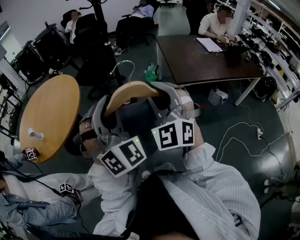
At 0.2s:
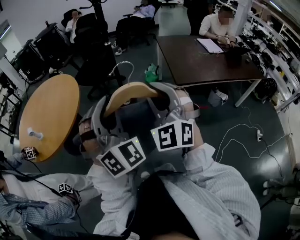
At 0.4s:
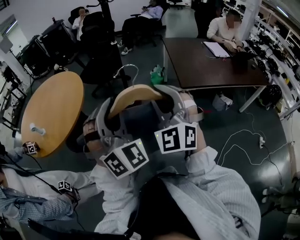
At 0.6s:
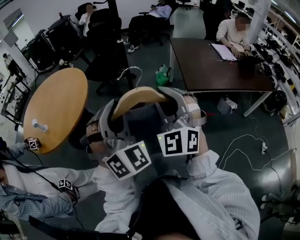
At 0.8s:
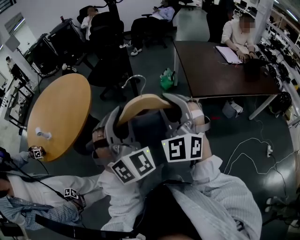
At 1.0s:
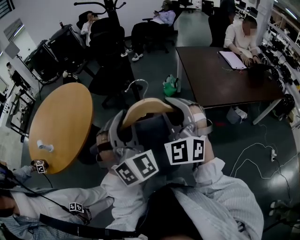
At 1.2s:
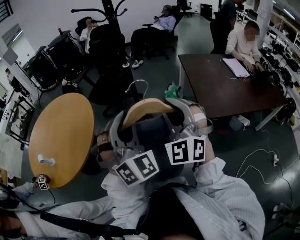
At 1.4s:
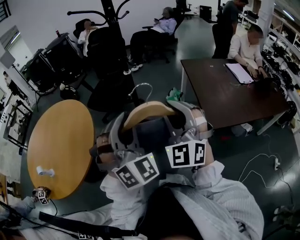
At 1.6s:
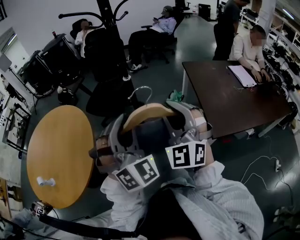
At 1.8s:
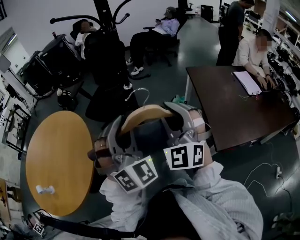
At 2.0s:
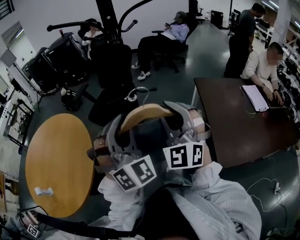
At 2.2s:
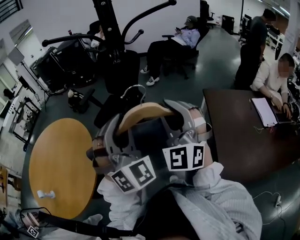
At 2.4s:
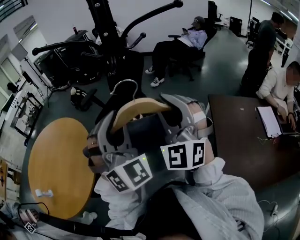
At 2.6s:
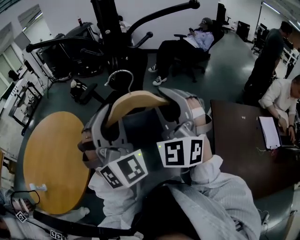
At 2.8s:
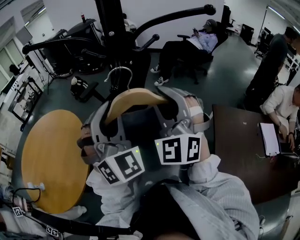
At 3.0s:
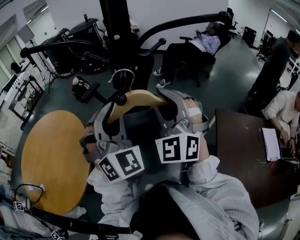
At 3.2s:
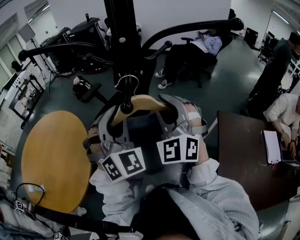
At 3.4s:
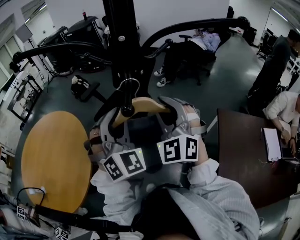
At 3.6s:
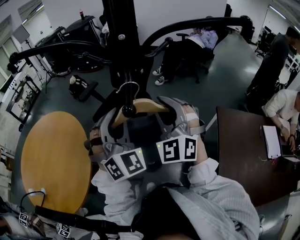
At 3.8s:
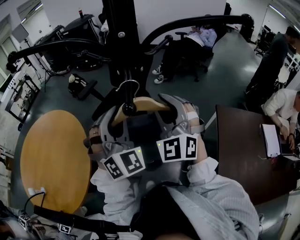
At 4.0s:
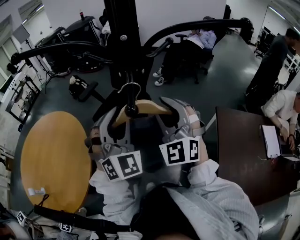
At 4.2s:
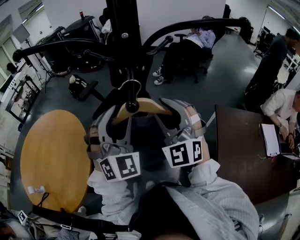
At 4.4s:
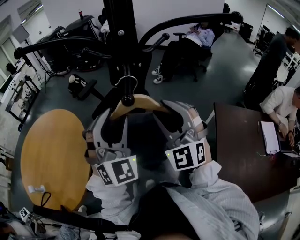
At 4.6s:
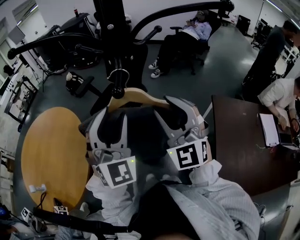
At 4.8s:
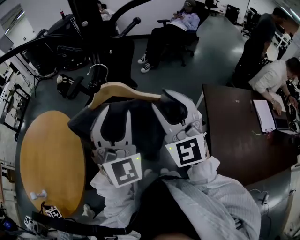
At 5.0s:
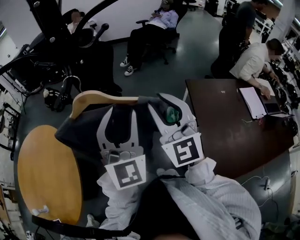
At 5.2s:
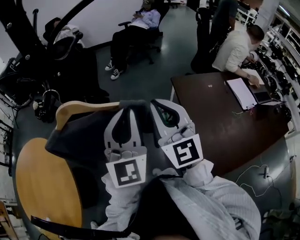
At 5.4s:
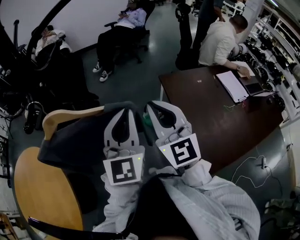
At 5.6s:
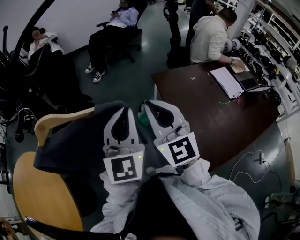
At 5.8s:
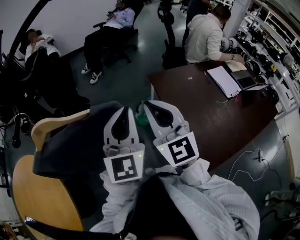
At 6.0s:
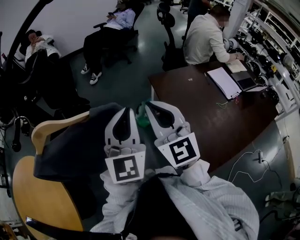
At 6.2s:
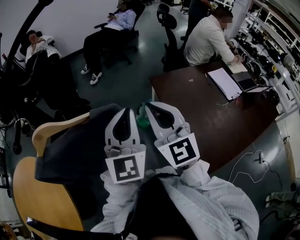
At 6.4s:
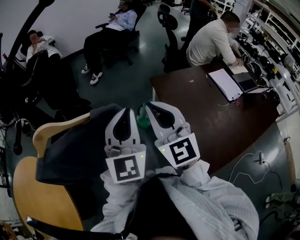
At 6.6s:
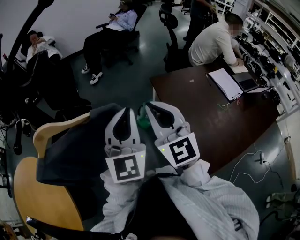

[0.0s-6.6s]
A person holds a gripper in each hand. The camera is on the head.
0.0s to 1.6s: The pair of grippers is taken forward, approximately 40 cm.
1.6s to 3.2s: The two grippers travel together, forward, roughly 50 cm.
3.2s to 5.0s: The left gripper heads to the right and backward, covering roughly 15 cm, changes its angle by roughly 40 degrees, and opens its fingers, while the right gripper shifts roughly 15 cm backward and to the right, and turns by about 30 degrees.
5.0s to 6.6s: Both grippers move to the right, roughly 15 cm. The left gripper changes its angle by roughly 20 degrees, and closes its fingers, while the right gripper closes.

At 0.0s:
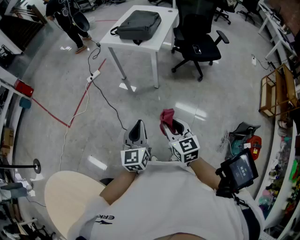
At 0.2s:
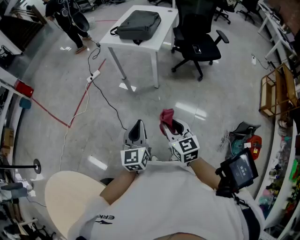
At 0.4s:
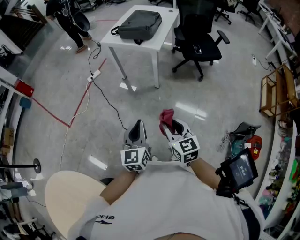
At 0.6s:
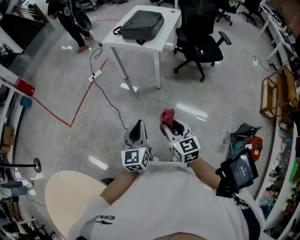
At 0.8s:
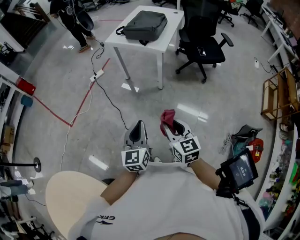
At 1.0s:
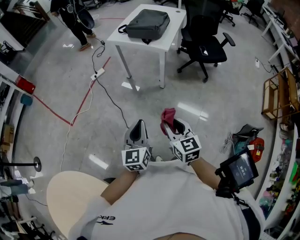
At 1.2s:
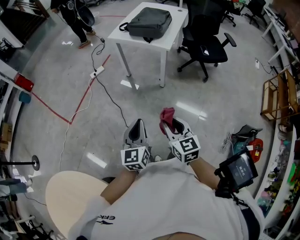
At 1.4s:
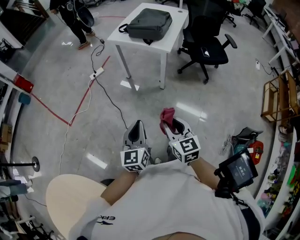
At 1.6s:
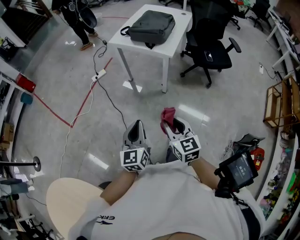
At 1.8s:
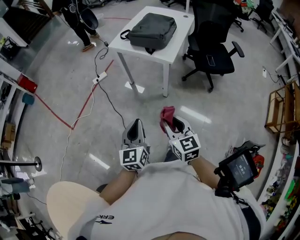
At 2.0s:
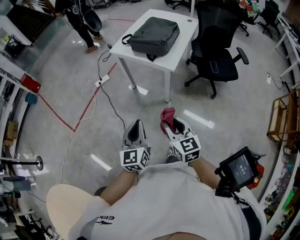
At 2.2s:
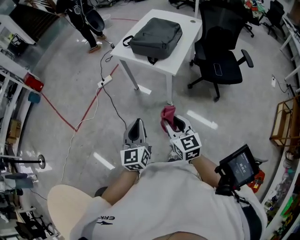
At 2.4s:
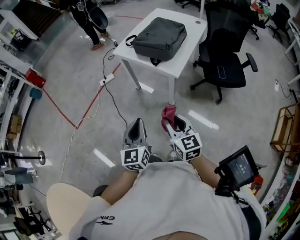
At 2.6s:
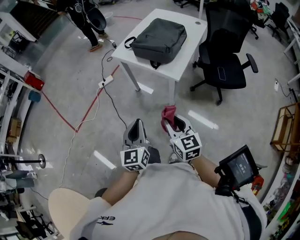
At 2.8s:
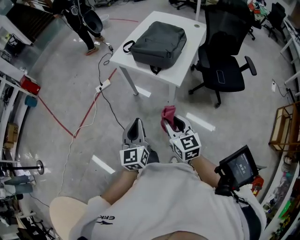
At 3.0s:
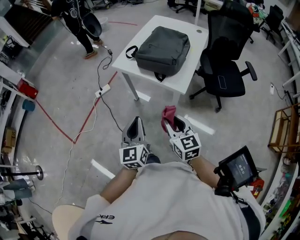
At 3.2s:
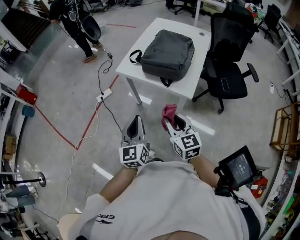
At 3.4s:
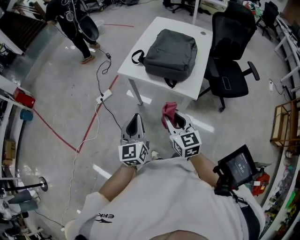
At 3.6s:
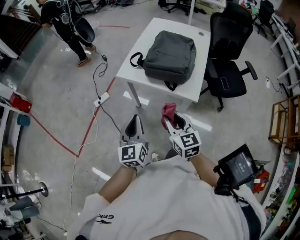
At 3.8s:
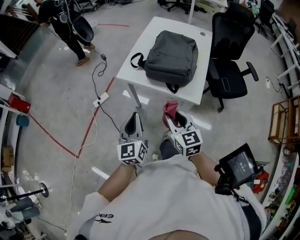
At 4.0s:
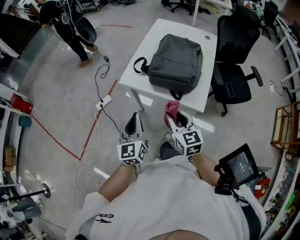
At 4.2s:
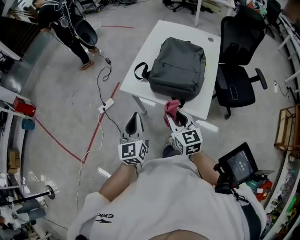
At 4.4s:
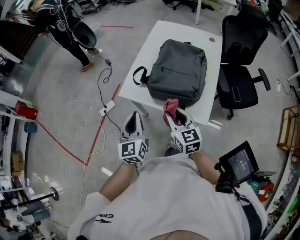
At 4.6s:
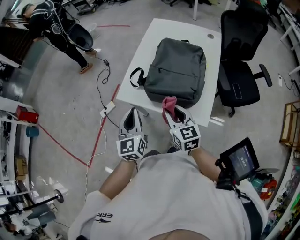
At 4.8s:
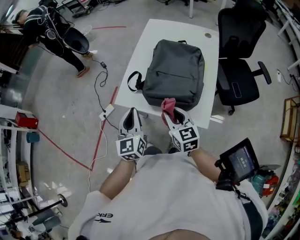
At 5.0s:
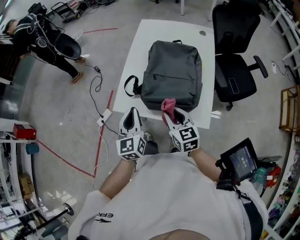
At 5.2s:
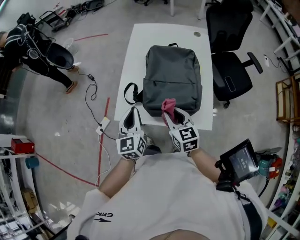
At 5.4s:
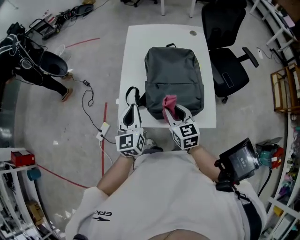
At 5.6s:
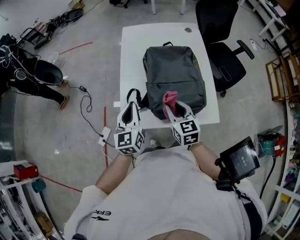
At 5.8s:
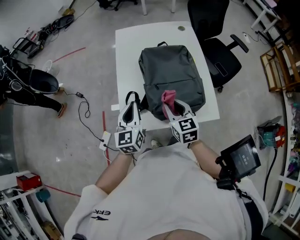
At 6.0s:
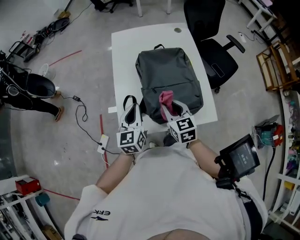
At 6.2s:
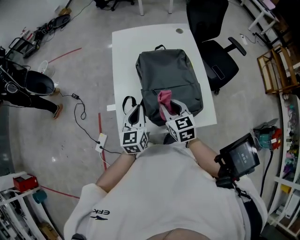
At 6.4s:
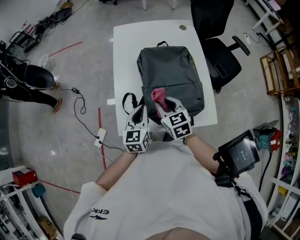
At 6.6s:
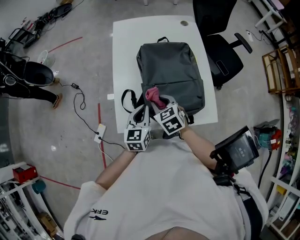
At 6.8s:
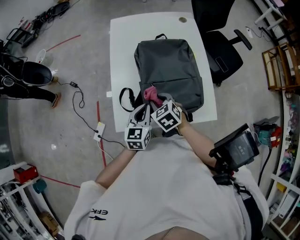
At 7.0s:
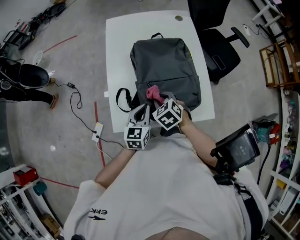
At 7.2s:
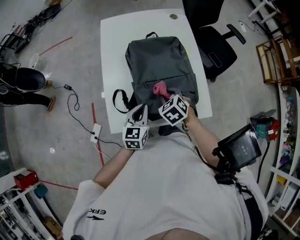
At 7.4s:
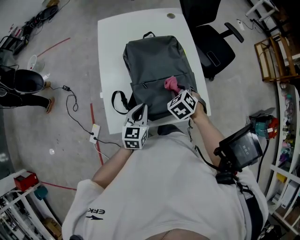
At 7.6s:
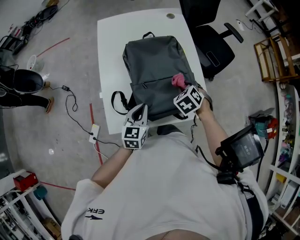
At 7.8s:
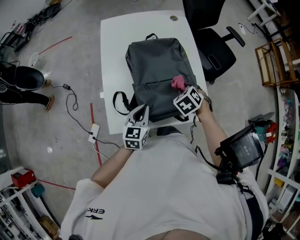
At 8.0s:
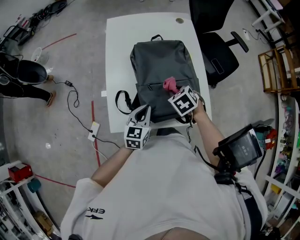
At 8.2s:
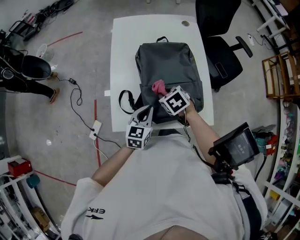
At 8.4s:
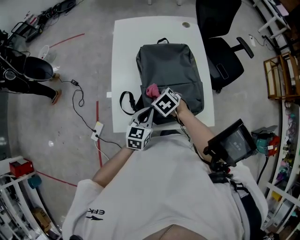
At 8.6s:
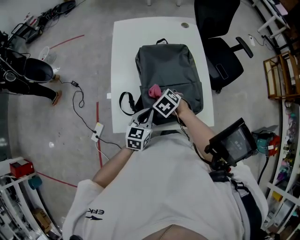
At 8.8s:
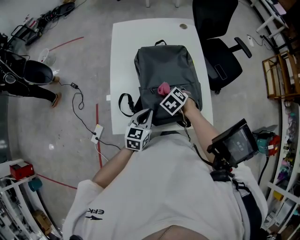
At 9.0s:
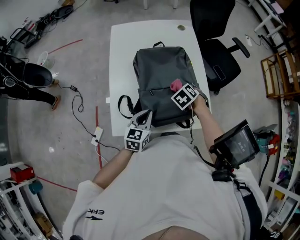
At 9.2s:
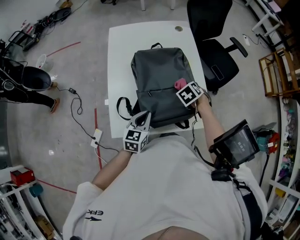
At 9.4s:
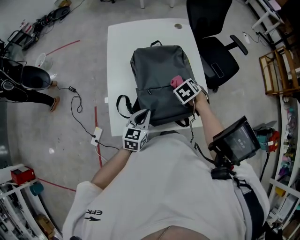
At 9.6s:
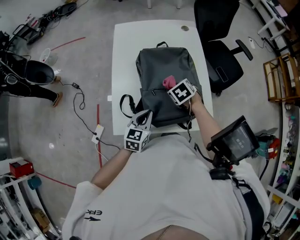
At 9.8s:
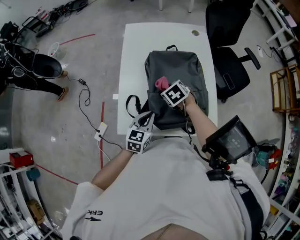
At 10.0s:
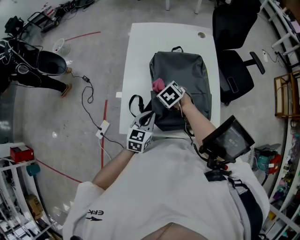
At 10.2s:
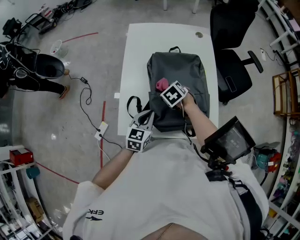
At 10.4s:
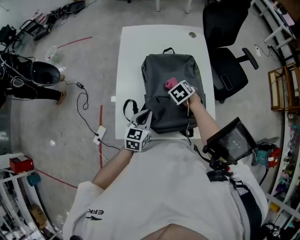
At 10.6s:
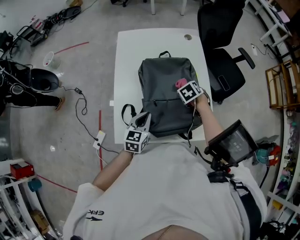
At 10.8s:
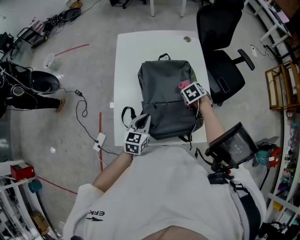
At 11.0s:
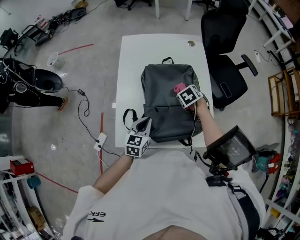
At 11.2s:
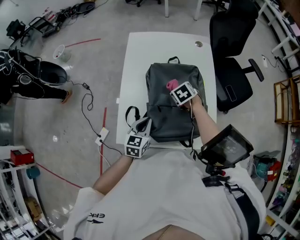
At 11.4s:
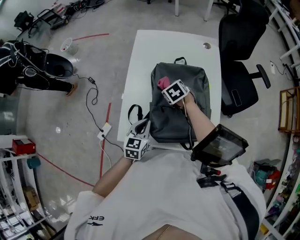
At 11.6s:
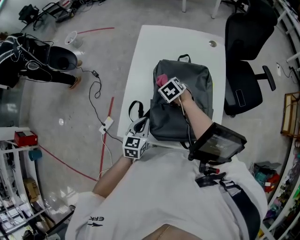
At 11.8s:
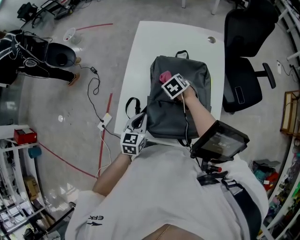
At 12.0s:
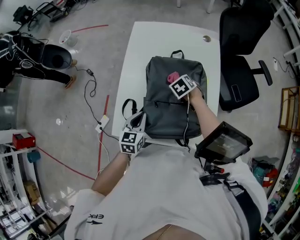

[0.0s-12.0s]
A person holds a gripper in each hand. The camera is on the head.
0.0s to 1.6s: The left gripper heads forward and to the left, covering roughly 10 cm; the right gripper is displaced forward by roughly 10 cm.
1.6s to 3.0s: Both grippers move forward, some 30 cm.
3.0s to 4.4s: Both grippers move forward, approximately 30 cm.
4.4s to 6.0s: The right gripper ends up roughly 20 cm from where it was, and changes its angle by about 30 degrees. The left gripper shifts by some 25 cm, and swivels approximately 30 degrees.
6.0s to 7.6s: The left gripper changes place by about 15 cm; the right gripper changes place by about 20 cm, and tilts its fingers approximately 30 degrees downward.

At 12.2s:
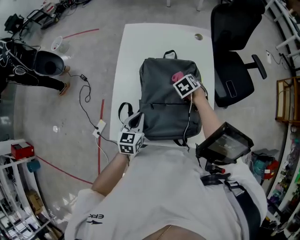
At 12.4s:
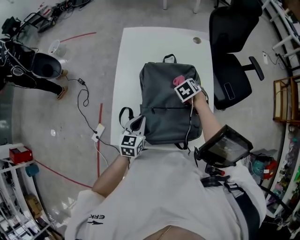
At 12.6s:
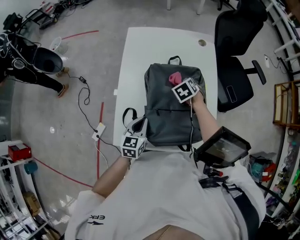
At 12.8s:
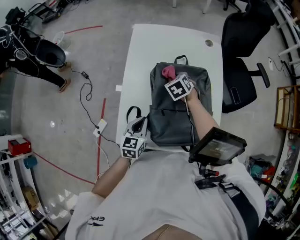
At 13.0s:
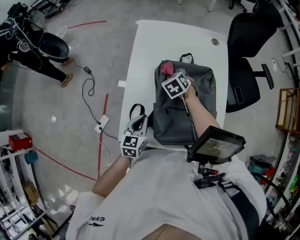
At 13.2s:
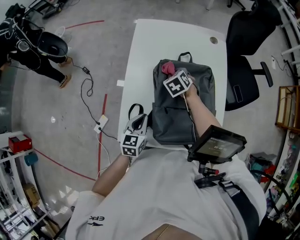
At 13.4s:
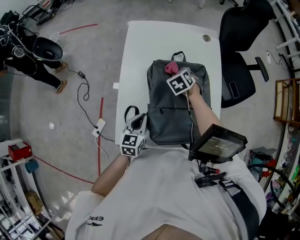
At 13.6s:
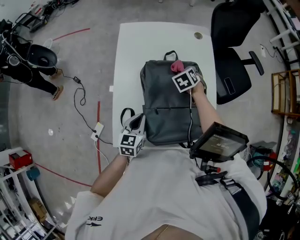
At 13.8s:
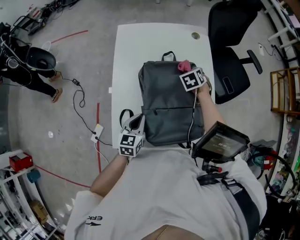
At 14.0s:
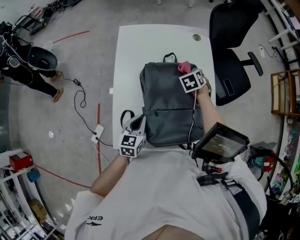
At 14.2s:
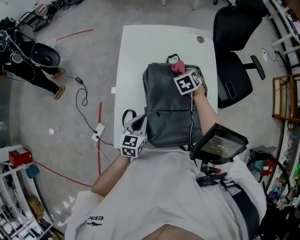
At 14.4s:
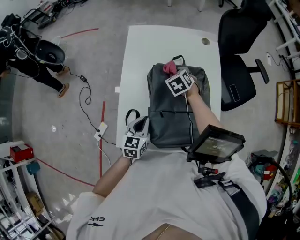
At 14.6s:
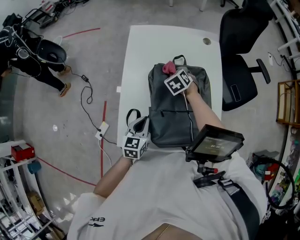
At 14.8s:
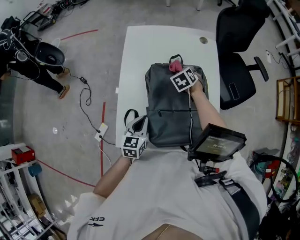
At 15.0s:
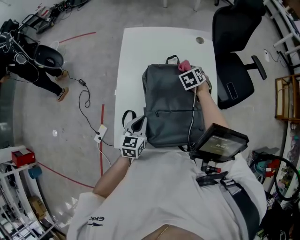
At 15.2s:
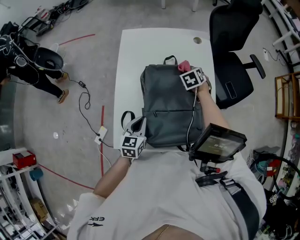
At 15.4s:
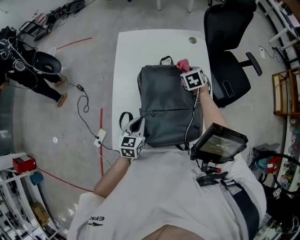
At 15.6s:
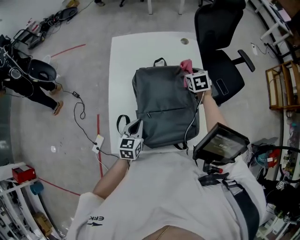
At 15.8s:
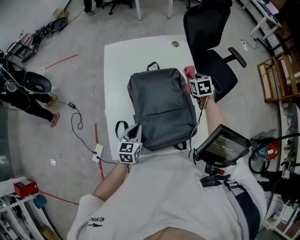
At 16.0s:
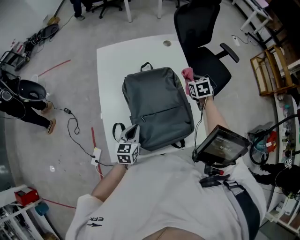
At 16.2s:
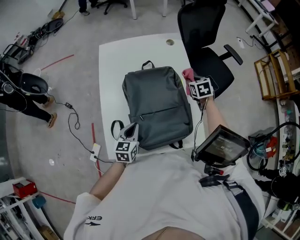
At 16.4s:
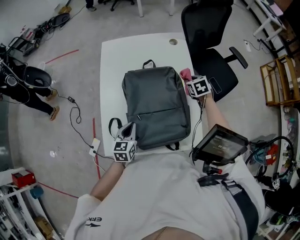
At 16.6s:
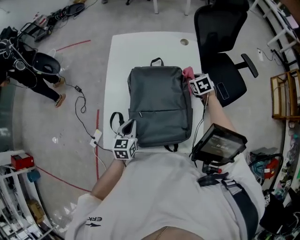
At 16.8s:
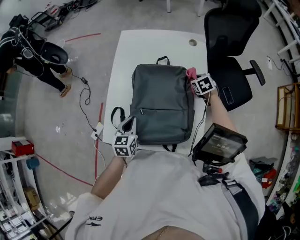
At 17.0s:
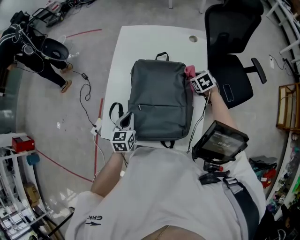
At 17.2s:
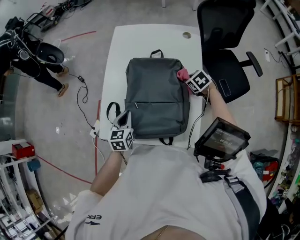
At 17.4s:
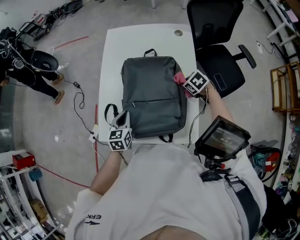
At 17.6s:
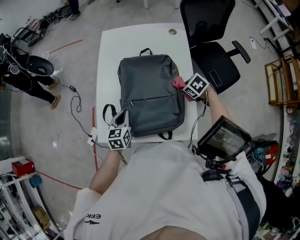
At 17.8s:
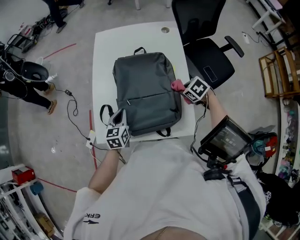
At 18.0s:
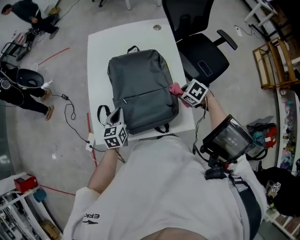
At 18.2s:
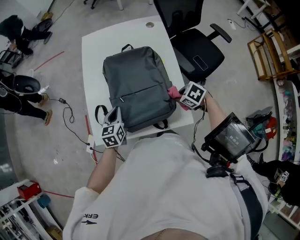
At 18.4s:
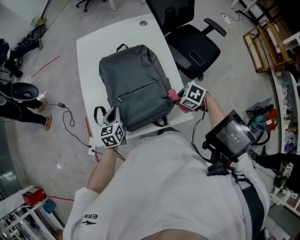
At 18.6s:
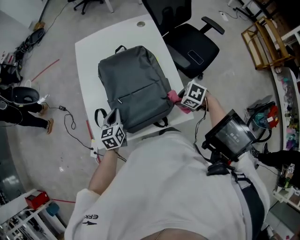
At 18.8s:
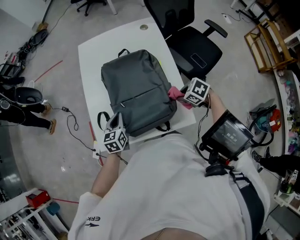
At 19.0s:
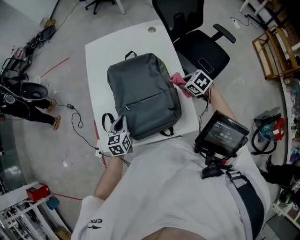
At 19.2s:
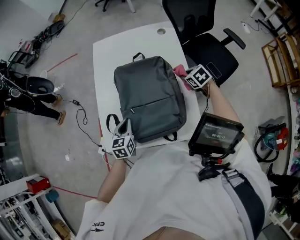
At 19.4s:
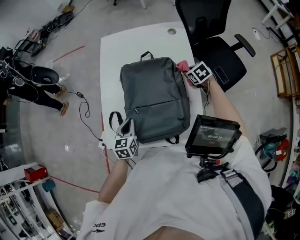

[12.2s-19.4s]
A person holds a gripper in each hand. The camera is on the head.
12.2s to 13.6s: The right gripper shifts some 10 cm forward, and goes to the left and returns, about 15 cm each way.
13.6s to 15.0s: The right gripper moves left and right over approximately 15 cm, changing direction 2 times.
15.0s to 16.6s: The right gripper travels to the right by some 10 cm.
16.6s to 18.0s: The right gripper travels backward by about 20 cm, and rotates about 30 degrees.
18.0s to 19.4s: The right gripper heads forward and to the right, covering approximately 20 cm.
